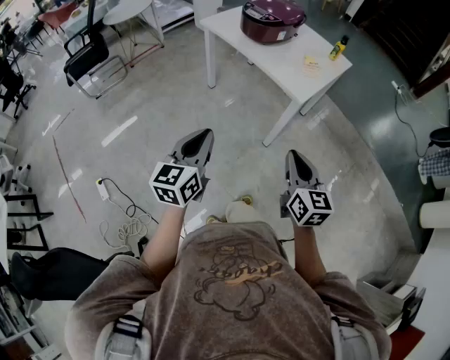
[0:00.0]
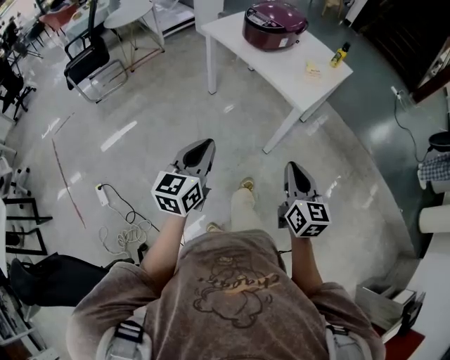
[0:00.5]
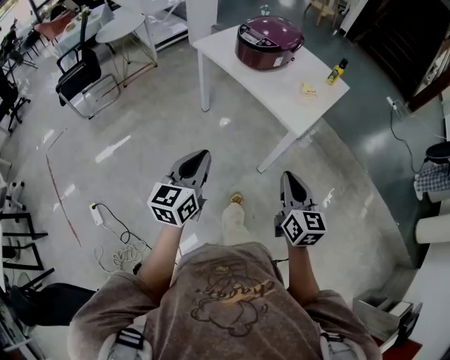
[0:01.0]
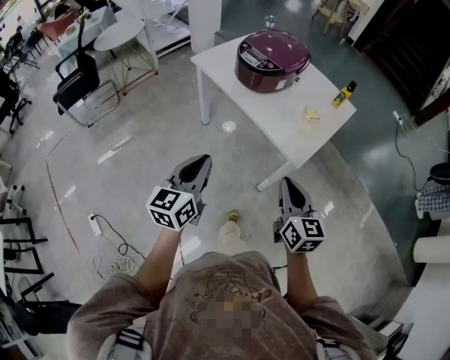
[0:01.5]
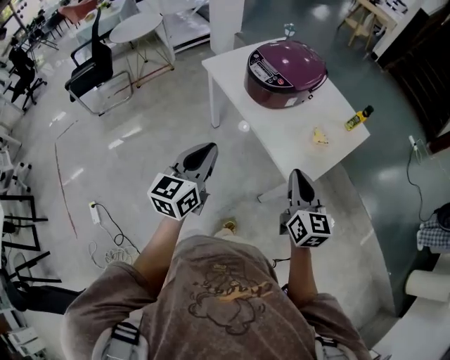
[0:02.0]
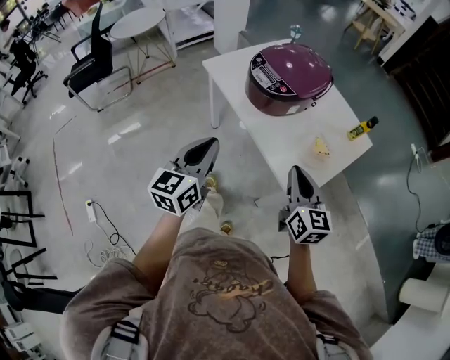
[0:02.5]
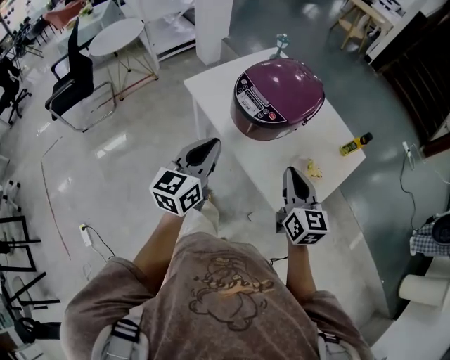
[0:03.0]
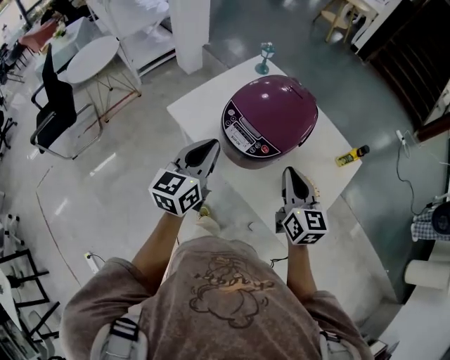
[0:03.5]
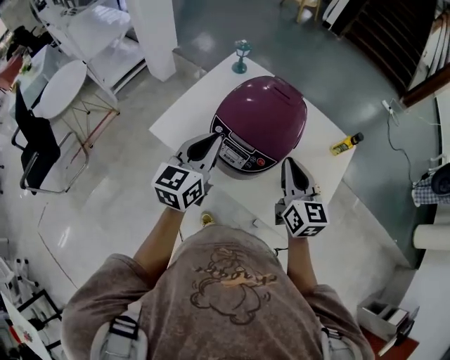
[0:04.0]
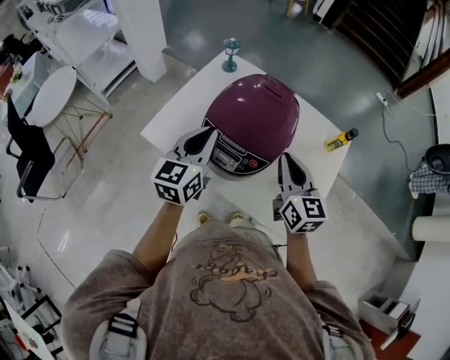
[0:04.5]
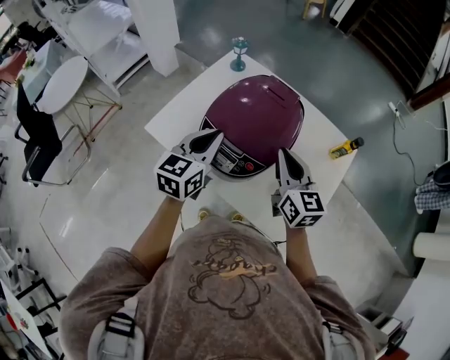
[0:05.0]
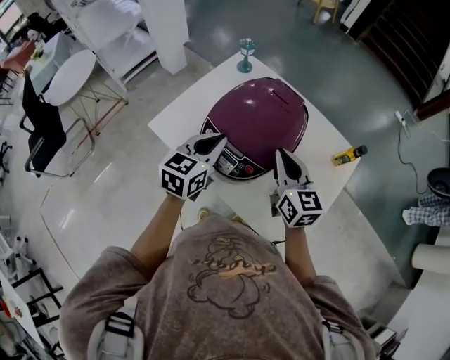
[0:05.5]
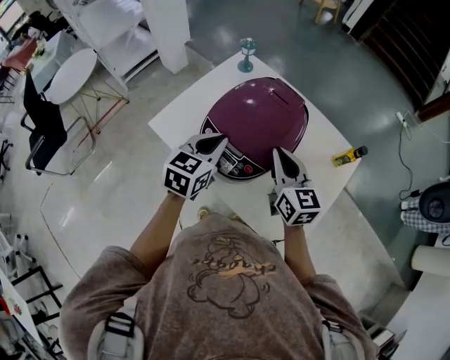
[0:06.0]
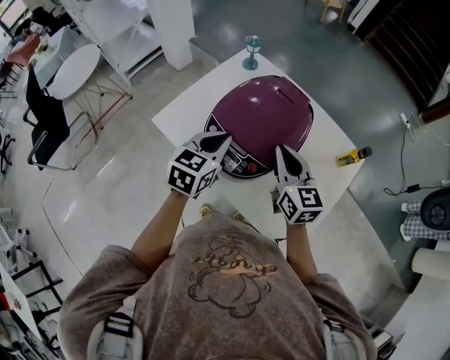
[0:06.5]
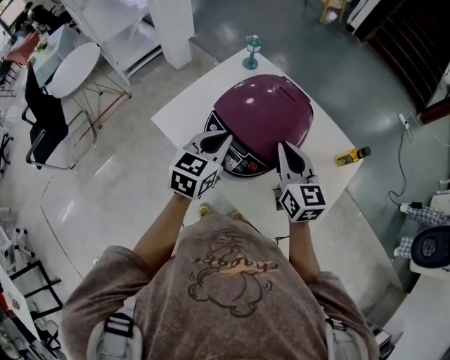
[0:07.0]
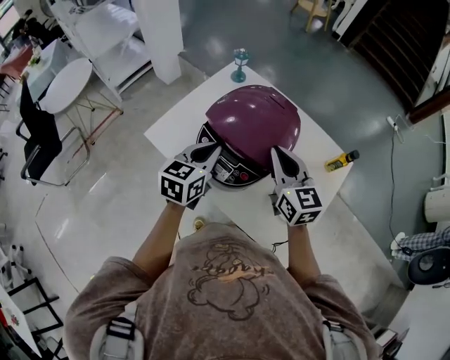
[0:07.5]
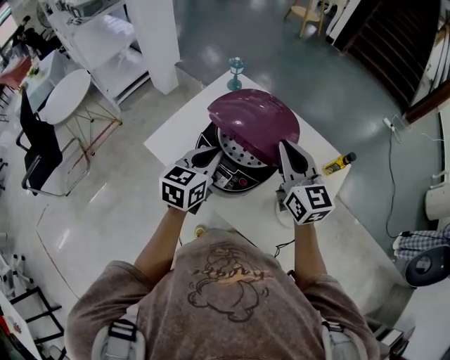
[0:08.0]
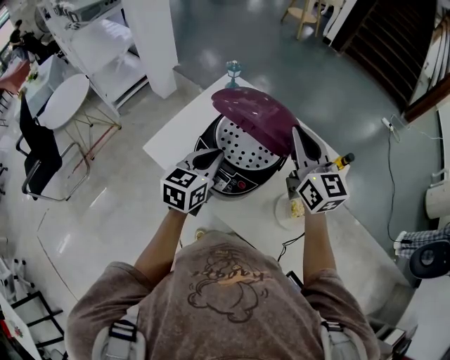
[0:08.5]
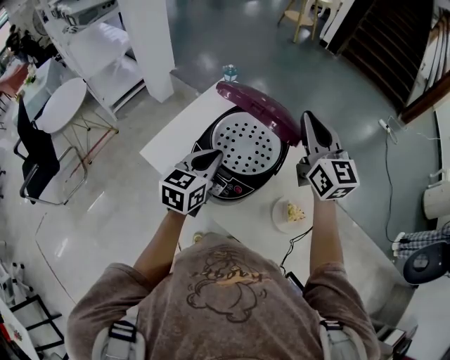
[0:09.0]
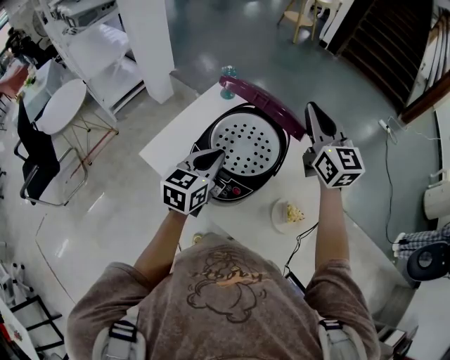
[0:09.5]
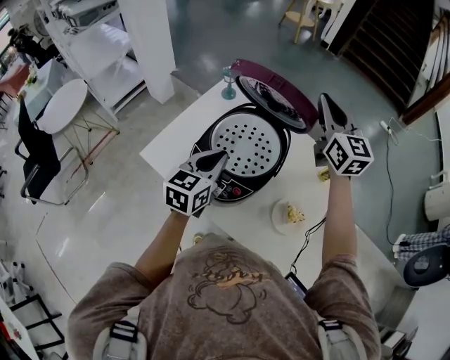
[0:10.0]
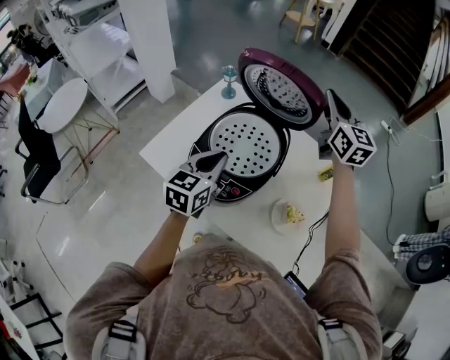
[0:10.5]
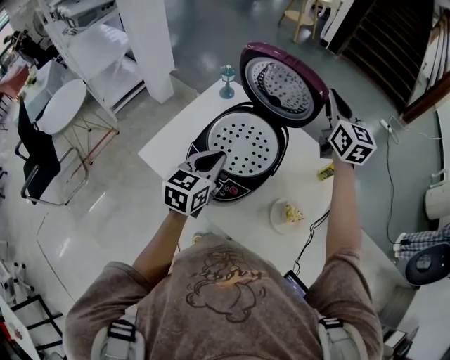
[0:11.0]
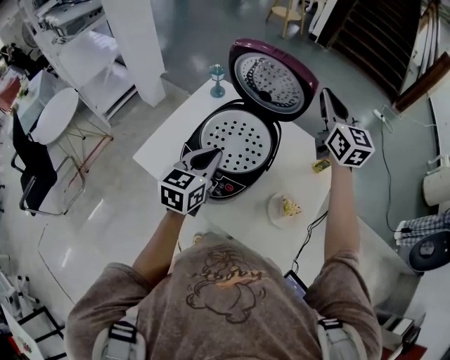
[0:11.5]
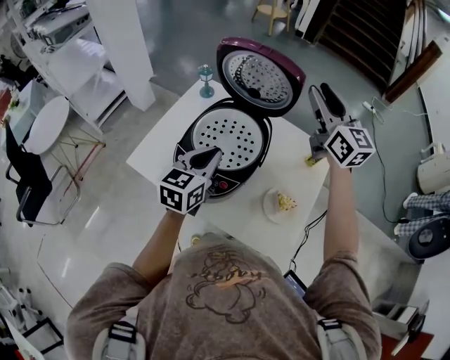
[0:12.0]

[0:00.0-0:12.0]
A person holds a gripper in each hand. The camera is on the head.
0.0 to 2.0 s: The two grippers go some 35 cm forward.
2.0 to 4.0 s: The two grippers go about 35 cm forward. The left gripper rotates some 20 degrees.
4.0 to 6.0 s: The left gripper travels to the right and downward by roughly 5 cm, while the right gripper goes roughly 5 cm forward.
6.0 to 8.0 s: The right gripper is displaced upward by about 10 cm.
8.0 to 10.0 s: The right gripper shifts about 20 cm forward, upward and to the right.
10.0 to 12.0 s: The right gripper shifts by roughly 5 cm.

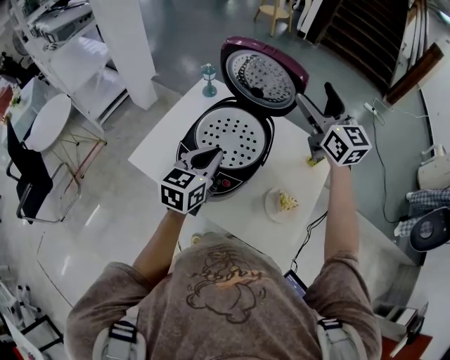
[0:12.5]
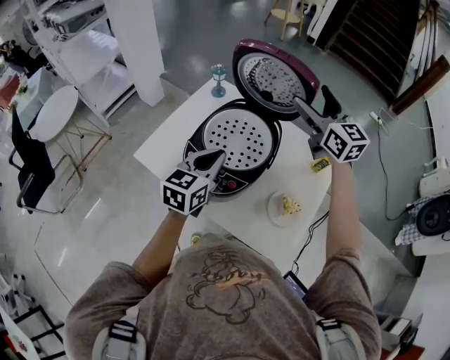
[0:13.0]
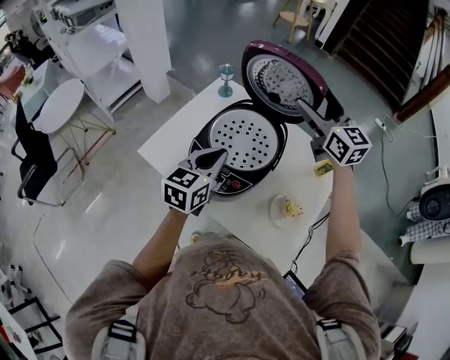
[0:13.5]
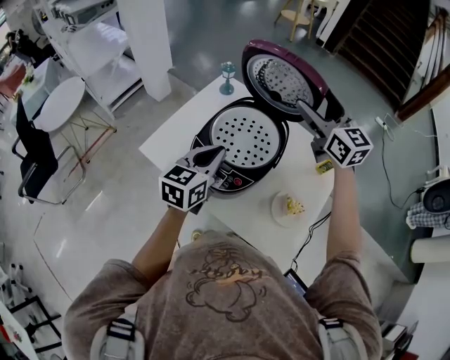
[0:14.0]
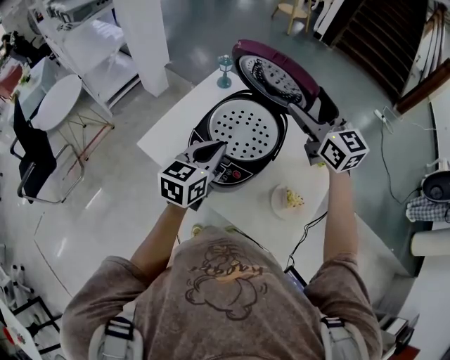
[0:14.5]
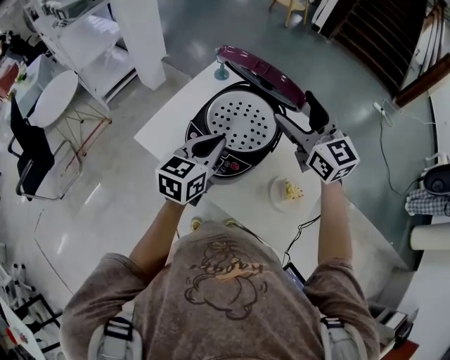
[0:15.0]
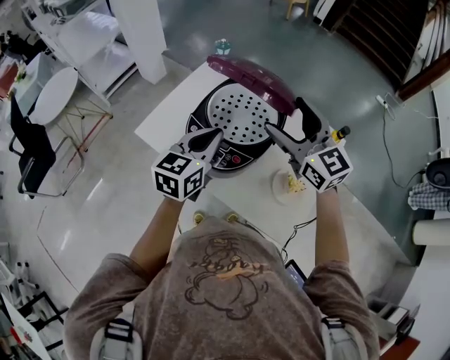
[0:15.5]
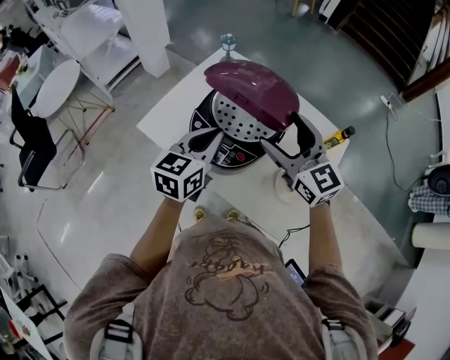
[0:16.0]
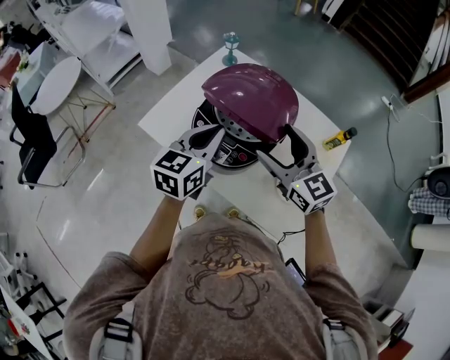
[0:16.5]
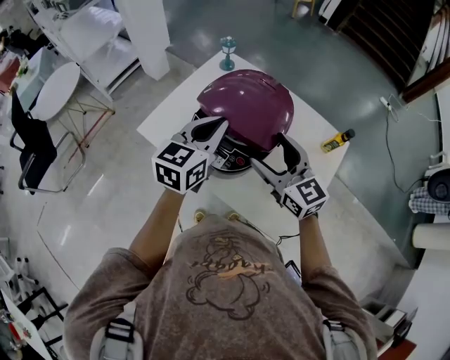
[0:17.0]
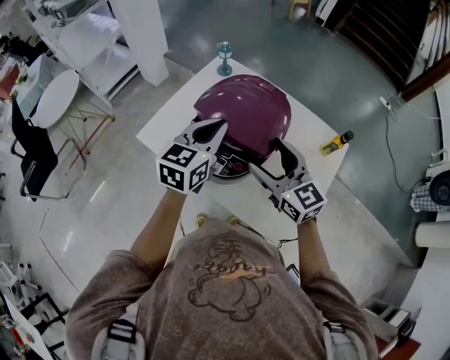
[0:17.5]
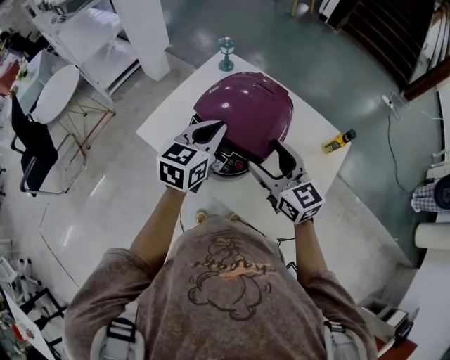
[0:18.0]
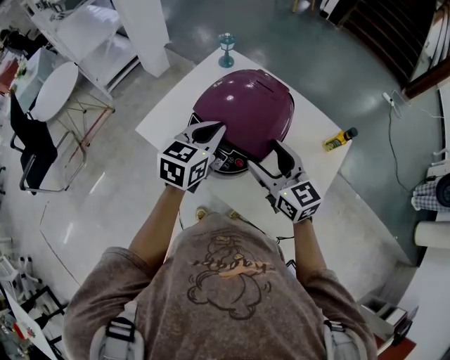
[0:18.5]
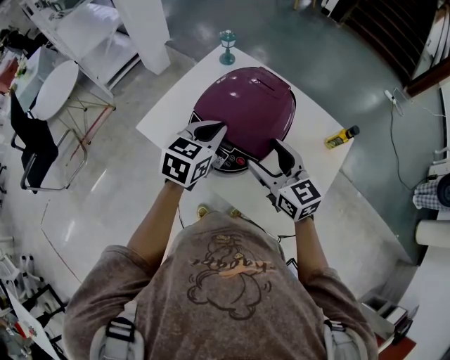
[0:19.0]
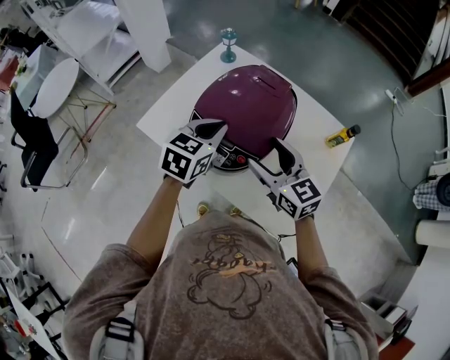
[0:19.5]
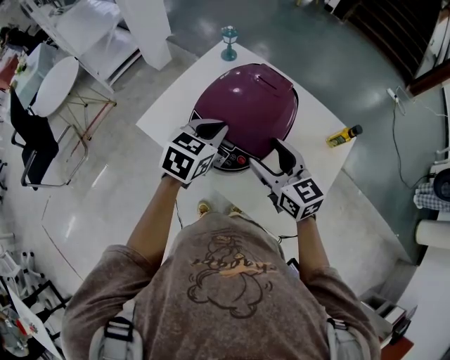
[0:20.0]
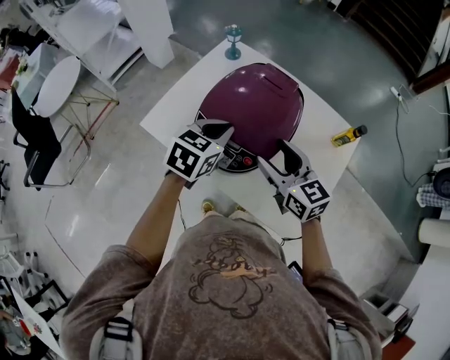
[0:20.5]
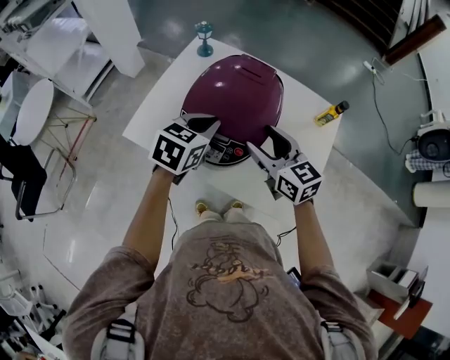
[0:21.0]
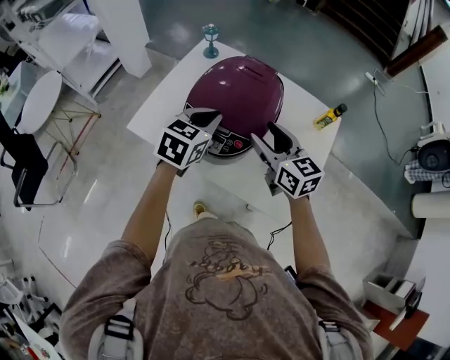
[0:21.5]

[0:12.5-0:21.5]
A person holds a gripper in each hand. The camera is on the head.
12.5 to 14.5 s: The right gripper goes approximately 5 cm to the left.
14.5 to 17.0 s: The right gripper heads downward, backward and to the left, covering some 20 cm.
17.0 to 19.5 s: The left gripper goes some 5 cm downward.
19.5 to 21.5 s: The grippers move only a little.

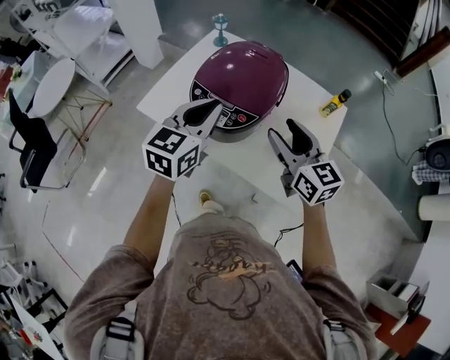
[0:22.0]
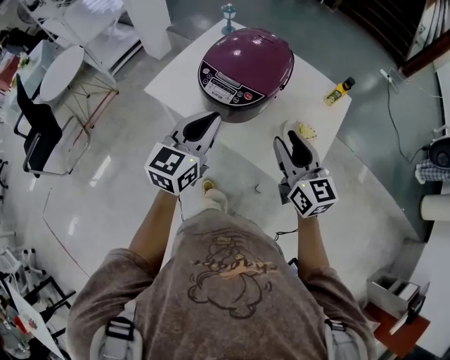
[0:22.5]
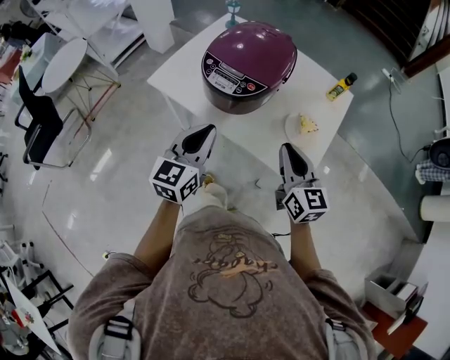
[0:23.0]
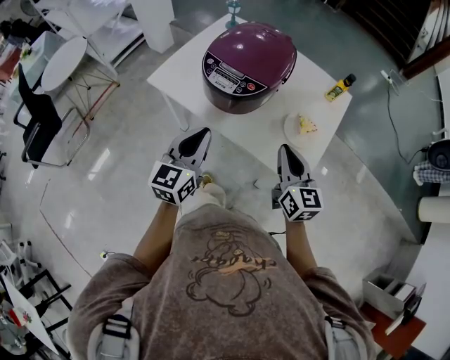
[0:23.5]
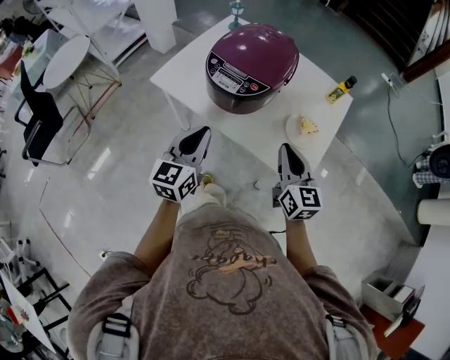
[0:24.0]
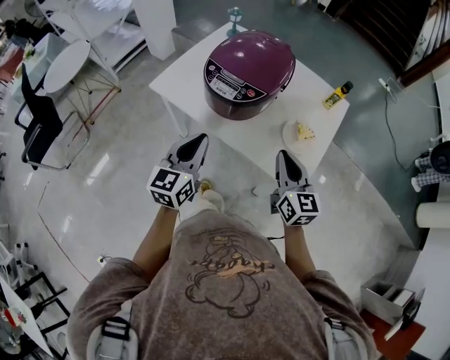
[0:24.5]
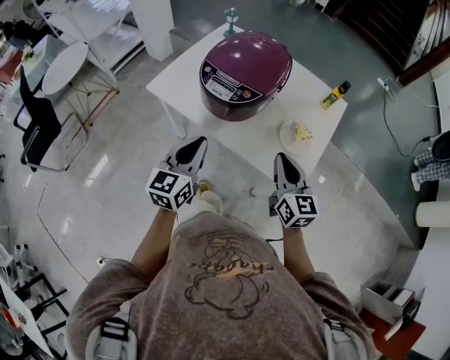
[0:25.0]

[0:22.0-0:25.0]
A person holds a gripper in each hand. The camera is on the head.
22.0 to 23.5 s: The grippers both shift backward and downward by approximately 15 cm. The right gripper closes its fingers.
23.5 to 25.0 s: Both grippers stay about where they are.

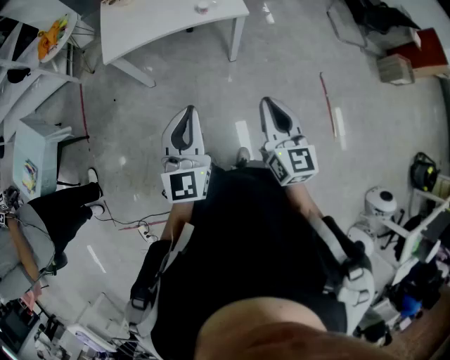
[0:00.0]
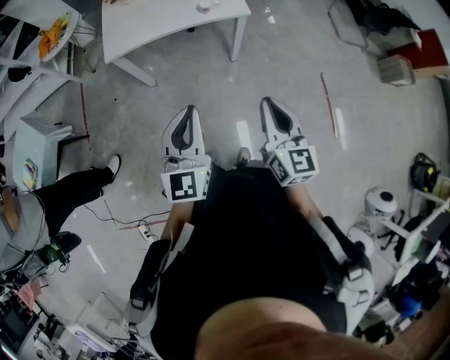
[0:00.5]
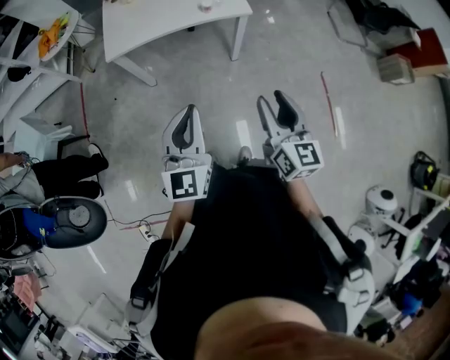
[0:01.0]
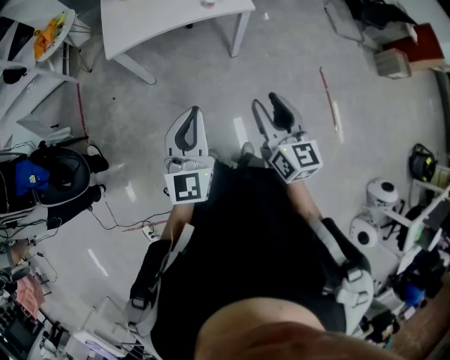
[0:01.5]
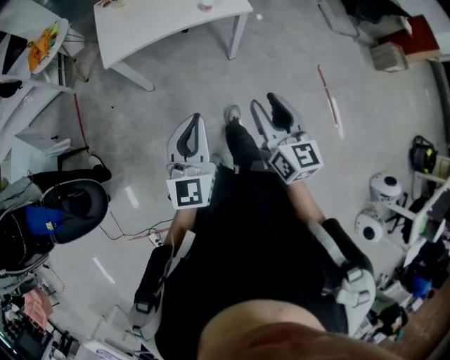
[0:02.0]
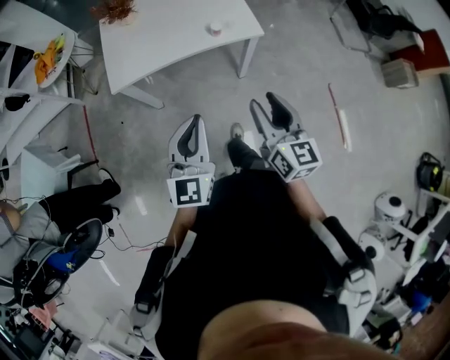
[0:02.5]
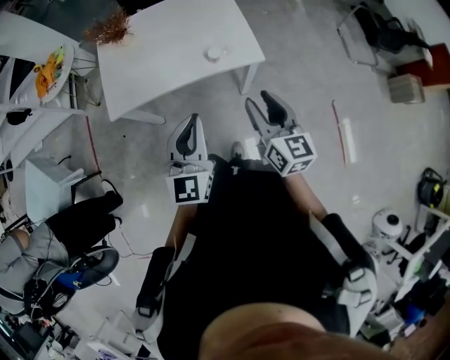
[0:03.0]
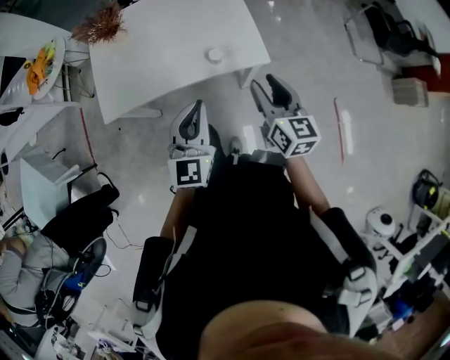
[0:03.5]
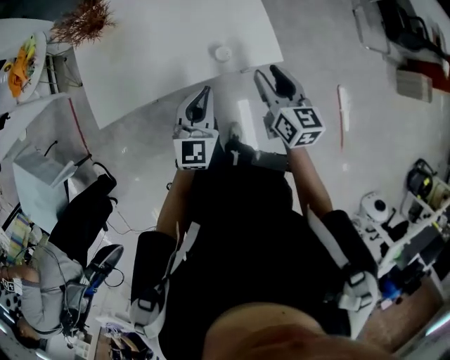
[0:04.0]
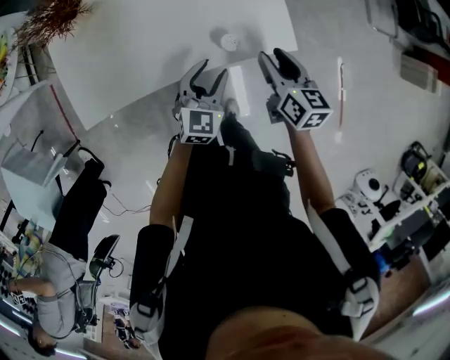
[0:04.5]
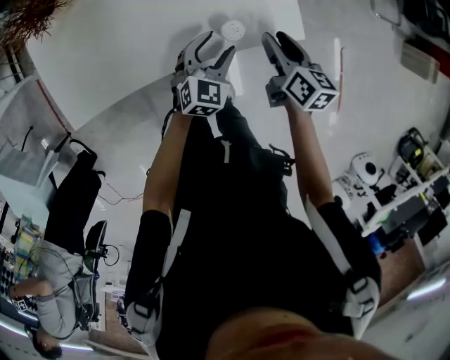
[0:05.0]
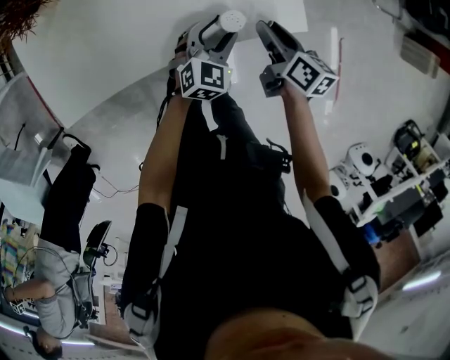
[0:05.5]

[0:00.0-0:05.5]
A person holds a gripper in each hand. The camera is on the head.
0.0 to 2.0 s: Both grippers travel together to the left, some 10 cm. The right gripper opens its fingers.
2.0 to 3.5 s: Both grippers are carried forward, about 40 cm.
3.5 to 5.5 s: Both grippers travel together downward and forward, some 35 cm. The right gripper rotates roughly 40 degrees; the left gripper swivels roughly 40 degrees, and opens its fingers.
